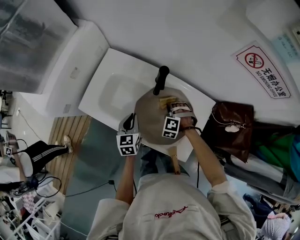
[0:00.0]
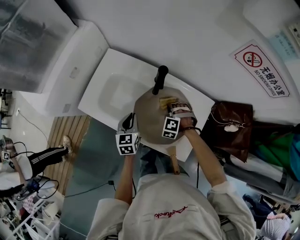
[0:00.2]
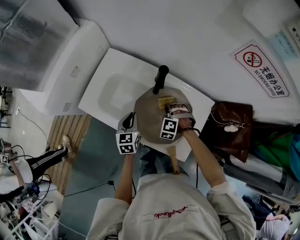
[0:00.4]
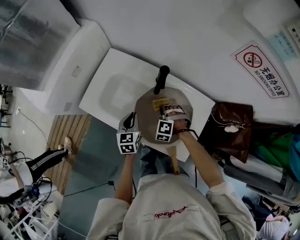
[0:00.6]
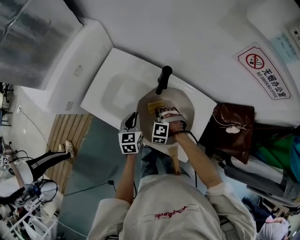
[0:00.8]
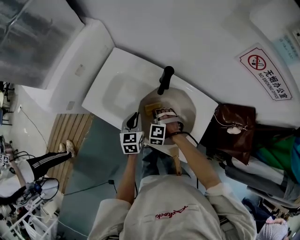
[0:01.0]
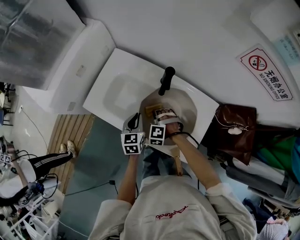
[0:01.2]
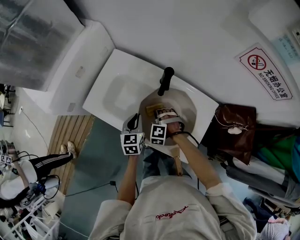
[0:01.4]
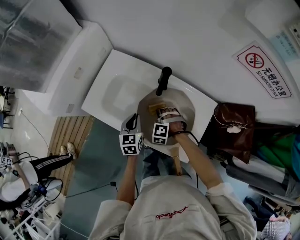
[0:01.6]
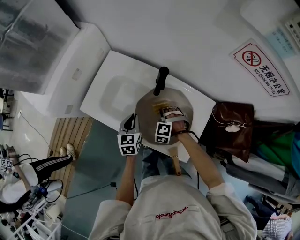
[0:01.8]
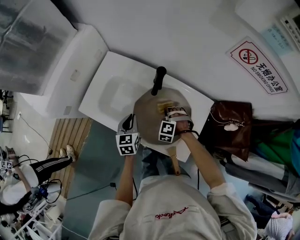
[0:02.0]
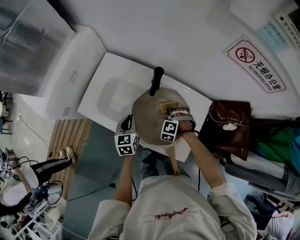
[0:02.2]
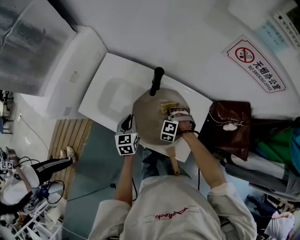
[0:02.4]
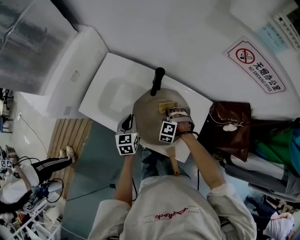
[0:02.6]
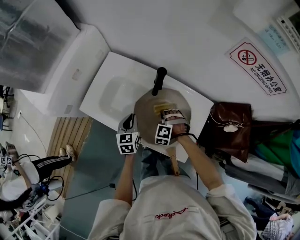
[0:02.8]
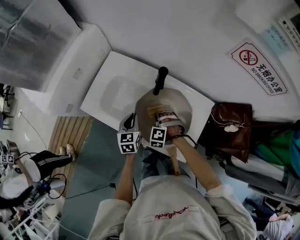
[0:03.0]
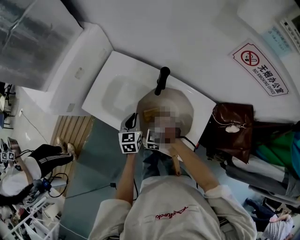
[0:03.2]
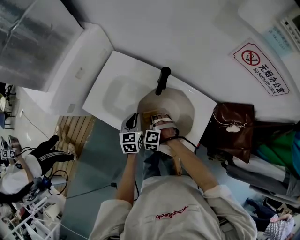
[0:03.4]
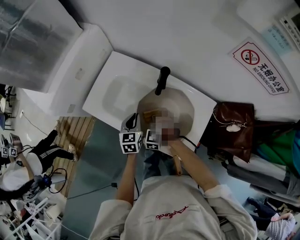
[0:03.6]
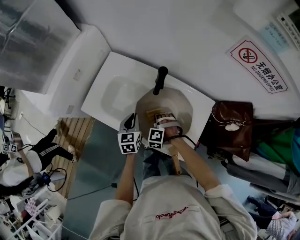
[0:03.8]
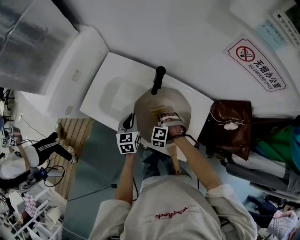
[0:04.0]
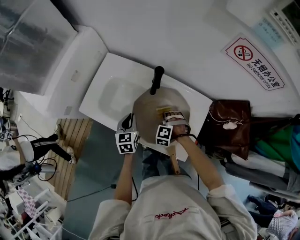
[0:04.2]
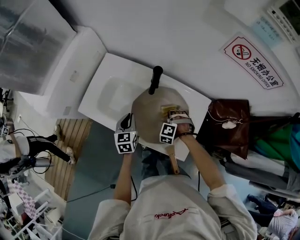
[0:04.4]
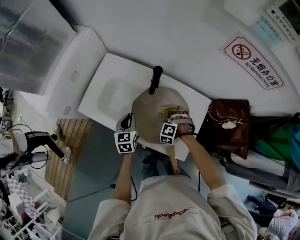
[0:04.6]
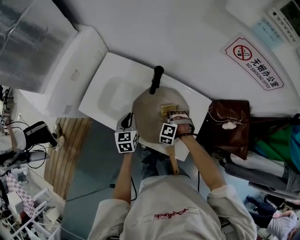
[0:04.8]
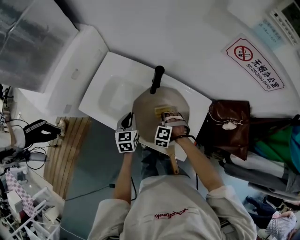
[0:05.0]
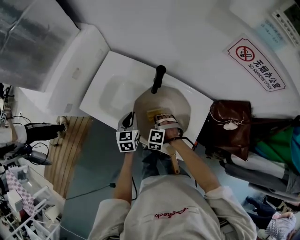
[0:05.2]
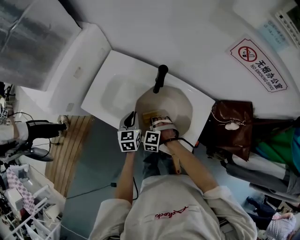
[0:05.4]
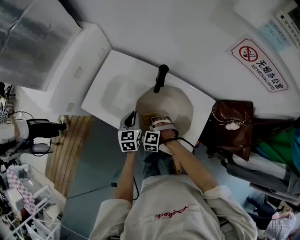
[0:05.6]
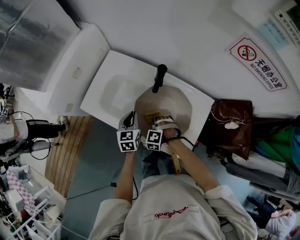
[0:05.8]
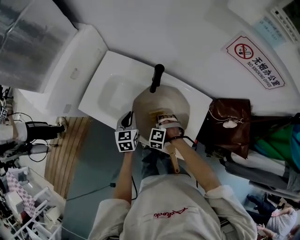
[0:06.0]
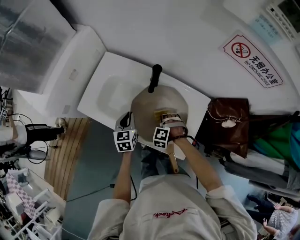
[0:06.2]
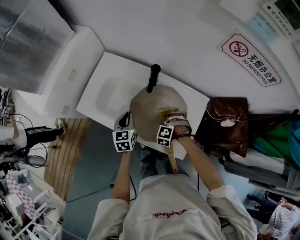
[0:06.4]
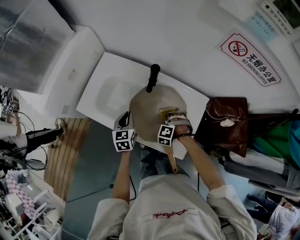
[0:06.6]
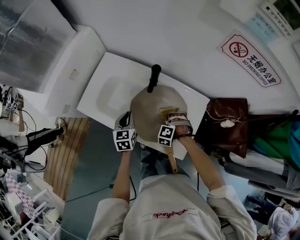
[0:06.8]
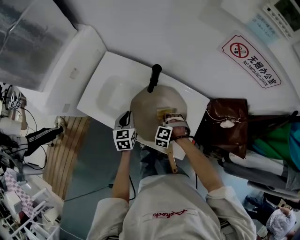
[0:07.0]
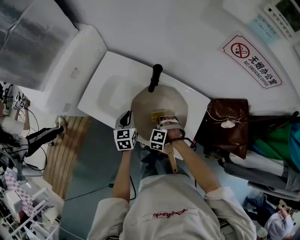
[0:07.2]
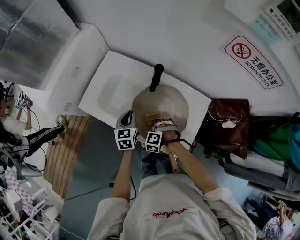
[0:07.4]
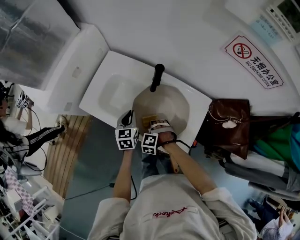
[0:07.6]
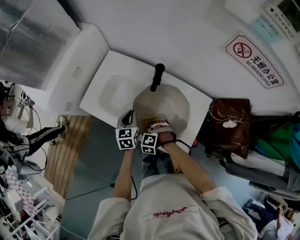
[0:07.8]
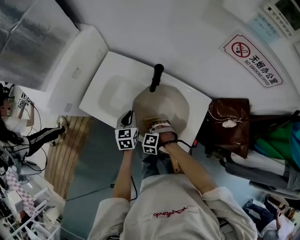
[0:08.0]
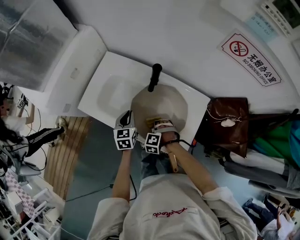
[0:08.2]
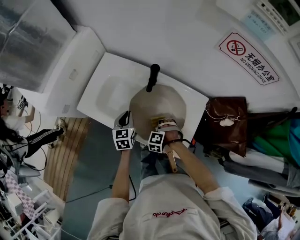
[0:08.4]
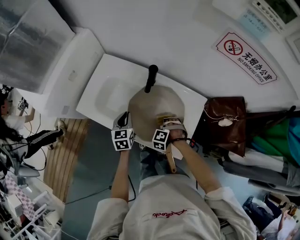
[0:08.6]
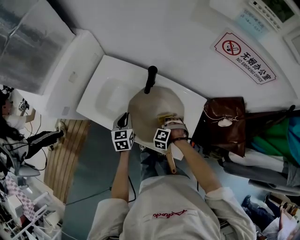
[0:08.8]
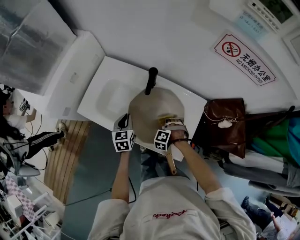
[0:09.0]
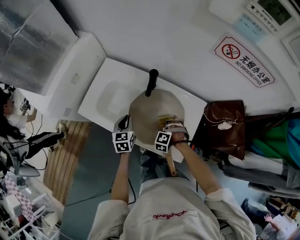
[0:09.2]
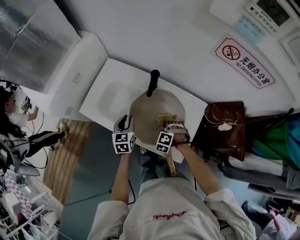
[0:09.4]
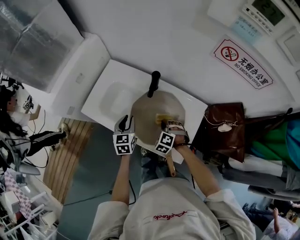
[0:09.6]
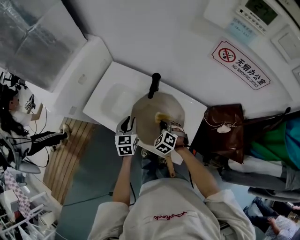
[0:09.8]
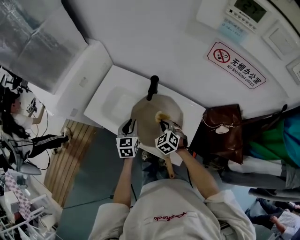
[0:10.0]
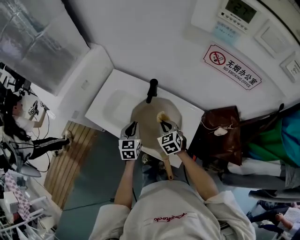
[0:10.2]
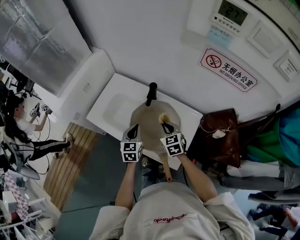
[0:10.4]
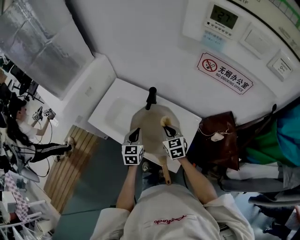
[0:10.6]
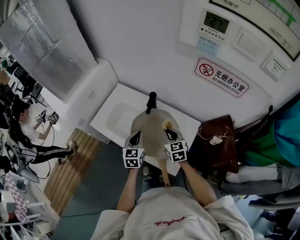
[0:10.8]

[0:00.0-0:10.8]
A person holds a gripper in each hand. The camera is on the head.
0:00.0 to 0:01.6: The right gripper is displaced to the left by about 5 cm.
0:01.6 to 0:03.0: The right gripper goes to the right and returns, about 10 cm each way.
0:03.0 to 0:04.6: The right gripper travels to the right by roughly 10 cm.
0:04.6 to 0:06.2: The right gripper goes to the left and returns, roughly 10 cm each way.
0:06.2 to 0:07.8: The right gripper heads to the left and backward, covering roughly 10 cm.
0:07.8 to 0:09.2: The right gripper goes roughly 10 cm to the right and forward.
0:09.2 to 0:10.8: The left gripper shifts some 10 cm upward; the right gripper is displaced upward by approximately 20 cm, and tilts its fingers about 40 degrees upward.

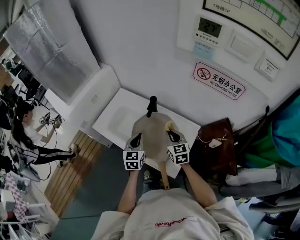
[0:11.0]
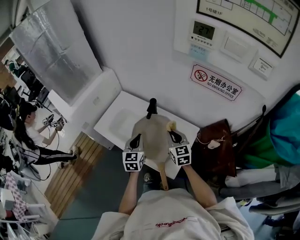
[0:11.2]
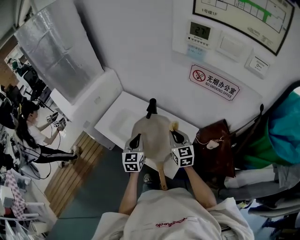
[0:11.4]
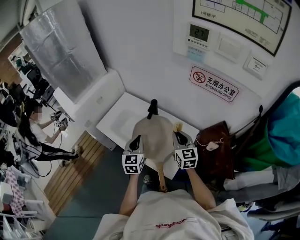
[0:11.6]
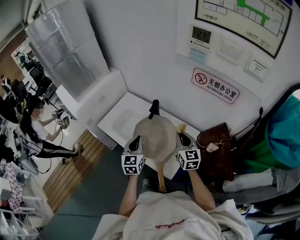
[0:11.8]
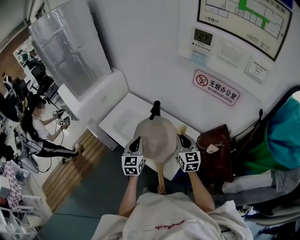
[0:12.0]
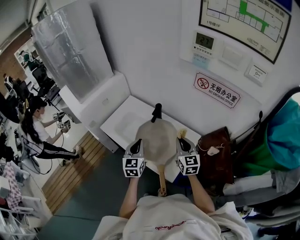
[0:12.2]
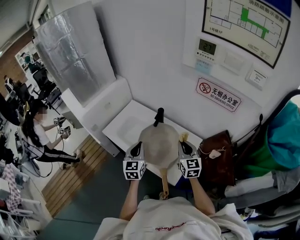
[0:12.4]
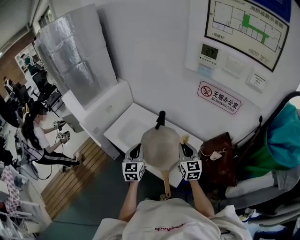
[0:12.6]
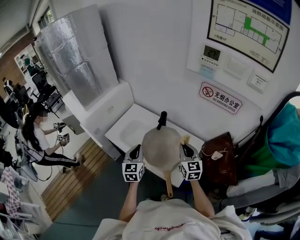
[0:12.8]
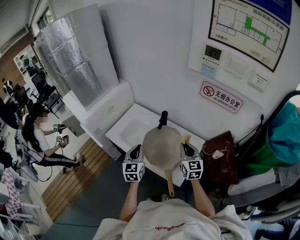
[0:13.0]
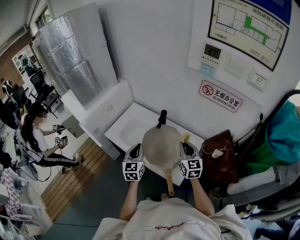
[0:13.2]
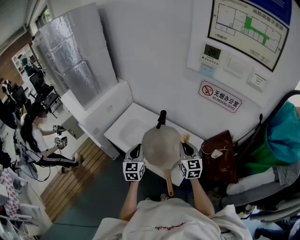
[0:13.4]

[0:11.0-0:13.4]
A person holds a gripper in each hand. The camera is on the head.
0:11.0 to 0:12.2: Both grippers travel together upward and backward, about 10 cm.
0:12.2 to 0:13.4: The left gripper goes approximately 5 cm to the left.

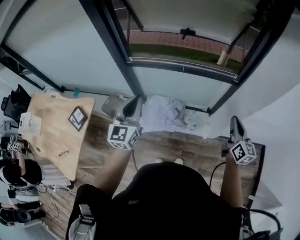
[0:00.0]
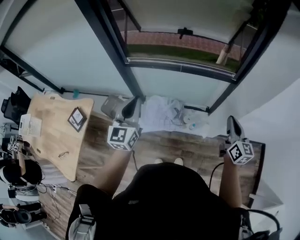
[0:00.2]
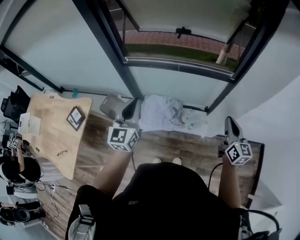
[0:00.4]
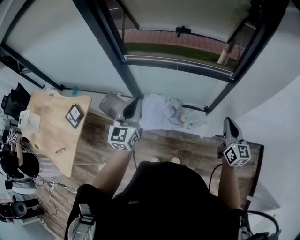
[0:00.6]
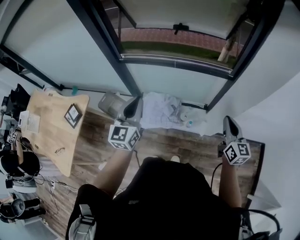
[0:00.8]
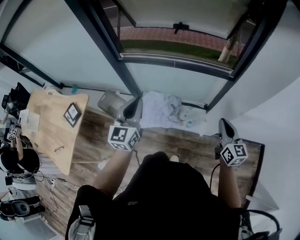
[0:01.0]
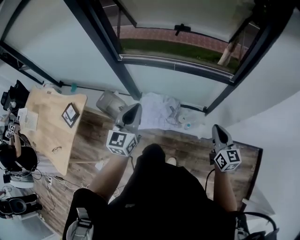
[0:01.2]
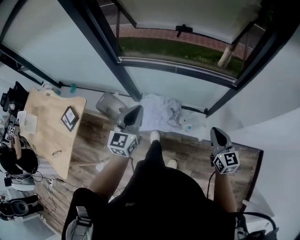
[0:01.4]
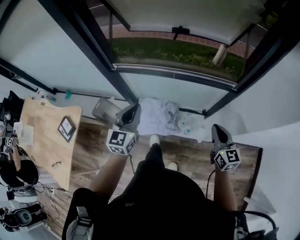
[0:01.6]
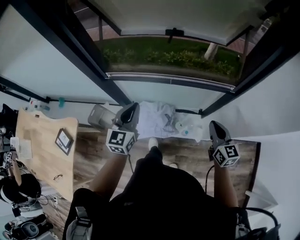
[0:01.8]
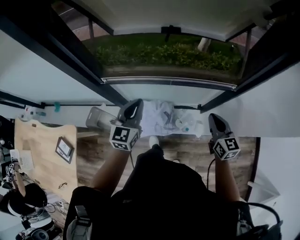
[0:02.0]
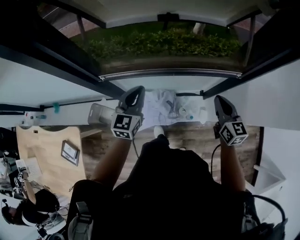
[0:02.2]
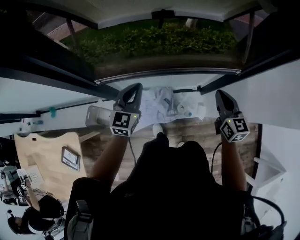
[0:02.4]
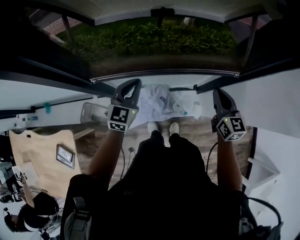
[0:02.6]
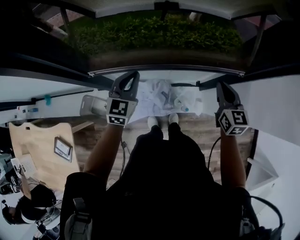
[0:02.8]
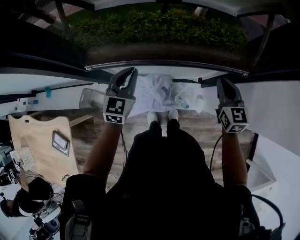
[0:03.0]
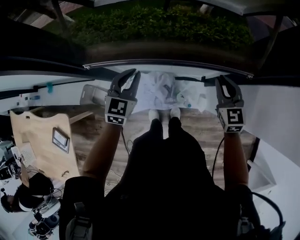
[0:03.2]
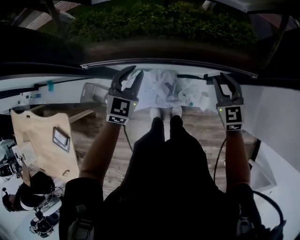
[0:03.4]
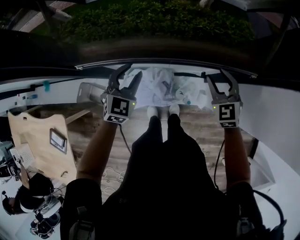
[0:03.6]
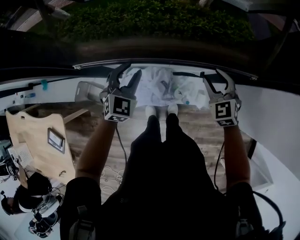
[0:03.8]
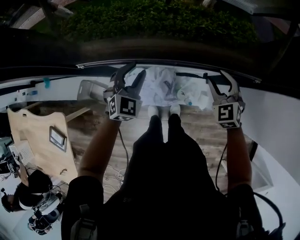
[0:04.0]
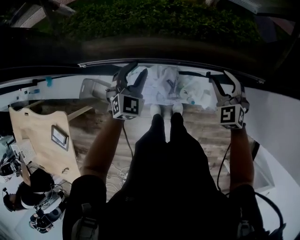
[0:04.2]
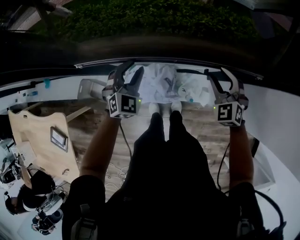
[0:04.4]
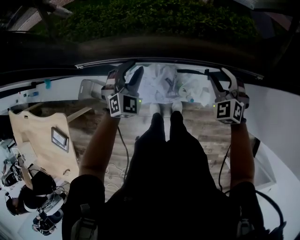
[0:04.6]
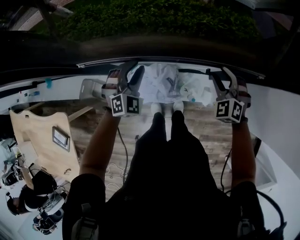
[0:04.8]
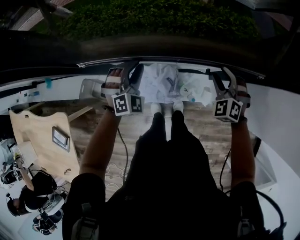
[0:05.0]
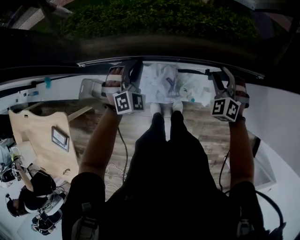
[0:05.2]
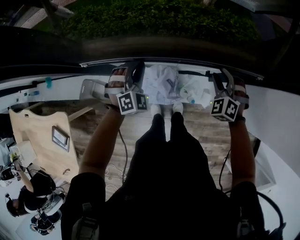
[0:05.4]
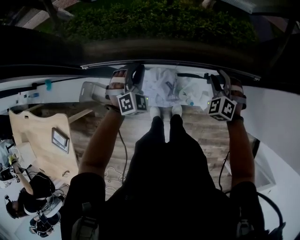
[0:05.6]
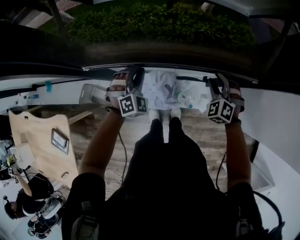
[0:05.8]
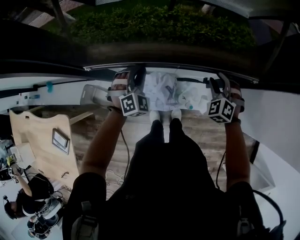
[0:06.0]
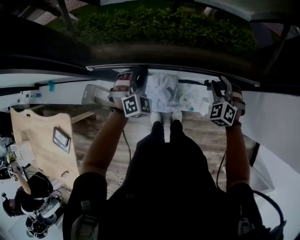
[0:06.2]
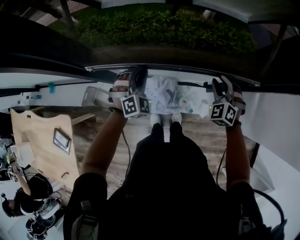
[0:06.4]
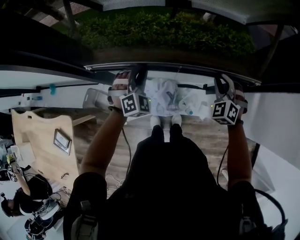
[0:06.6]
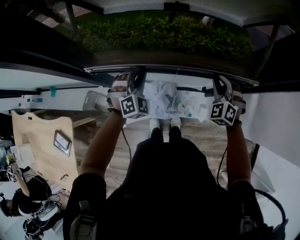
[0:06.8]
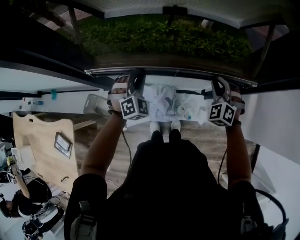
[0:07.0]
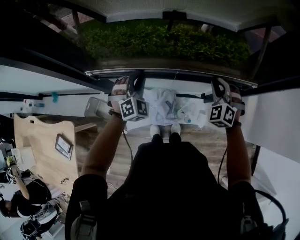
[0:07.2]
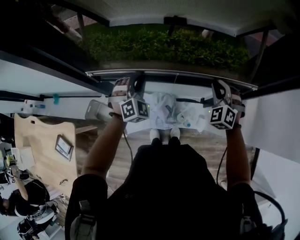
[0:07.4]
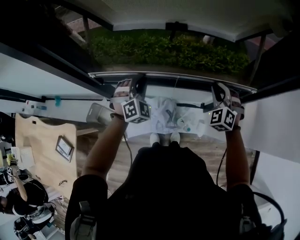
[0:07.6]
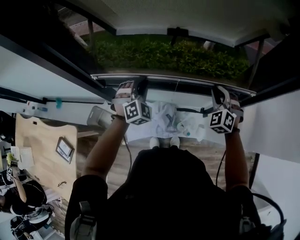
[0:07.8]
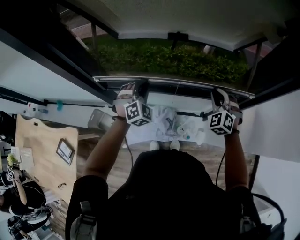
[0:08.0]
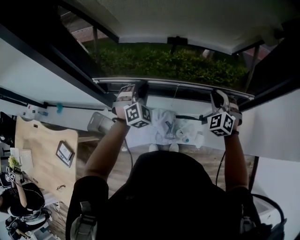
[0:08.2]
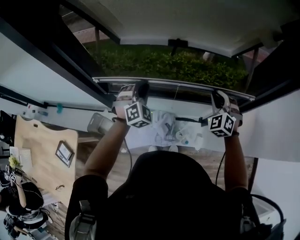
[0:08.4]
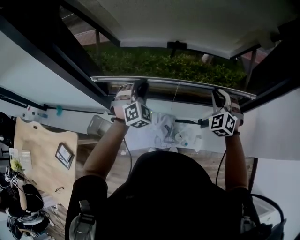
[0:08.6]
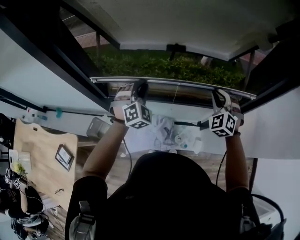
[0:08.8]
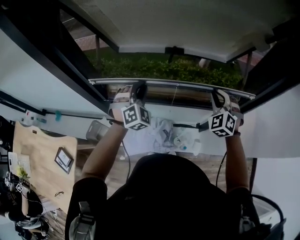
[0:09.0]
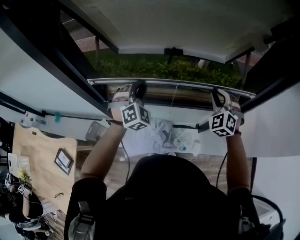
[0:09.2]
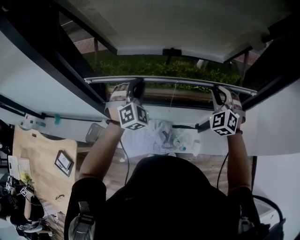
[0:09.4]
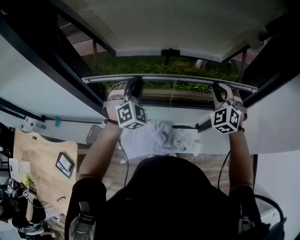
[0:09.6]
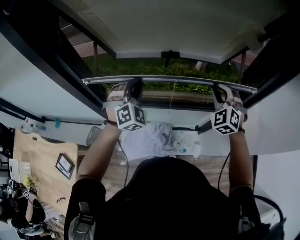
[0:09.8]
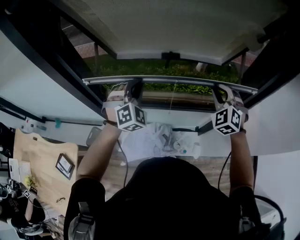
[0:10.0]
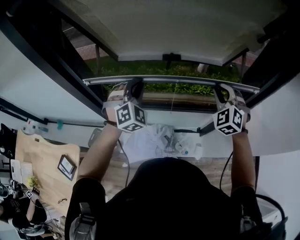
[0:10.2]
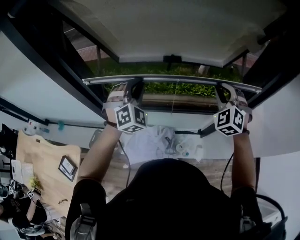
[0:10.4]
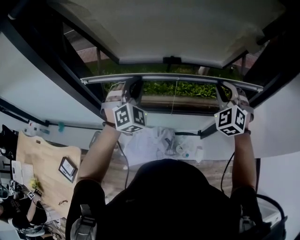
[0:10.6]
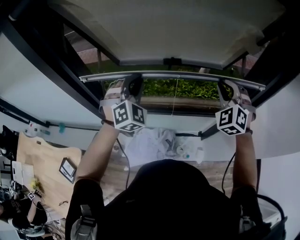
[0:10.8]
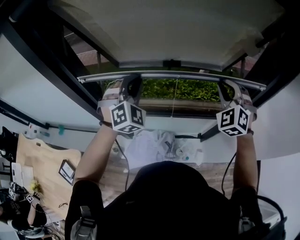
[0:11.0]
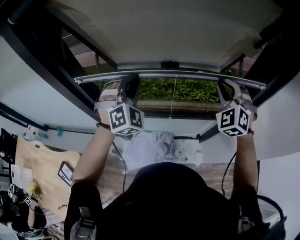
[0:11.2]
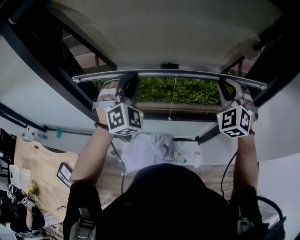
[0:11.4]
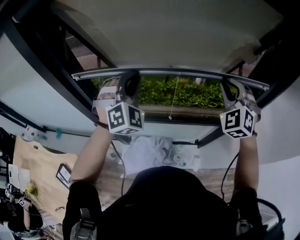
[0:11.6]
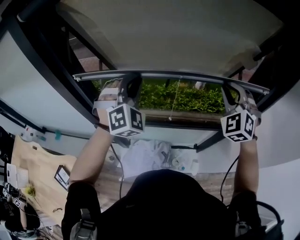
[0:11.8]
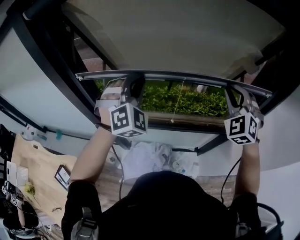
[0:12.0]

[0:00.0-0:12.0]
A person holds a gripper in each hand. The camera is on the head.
0:00.0 to 0:01.6: The left gripper heads forward, downward and to the right, covering roughly 15 cm; the right gripper goes some 10 cm forward and downward.
0:01.6 to 0:03.0: Both grippers move forward, some 25 cm.
0:03.0 to 0:04.4: Both grippers move downward, approximately 10 cm. The left gripper turns by some 30 degrees, and opens, while the right gripper rolls counterclockwise, seen from behind, by about 40 degrees, and opens.
0:04.4 to 0:06.0: The left gripper closes up.
0:06.0 to 0:07.6: The two grippers go some 15 cm upward. The right gripper closes.
0:07.6 to 0:09.0: Both grippers move upward, roughly 10 cm.
0:09.0 to 0:10.4: The grippers both shift upward by approximately 10 cm.
0:10.4 to 0:12.0: The two grippers go roughly 10 cm upward.
